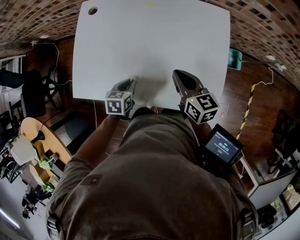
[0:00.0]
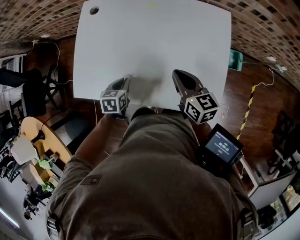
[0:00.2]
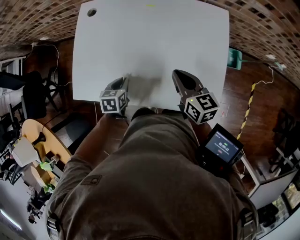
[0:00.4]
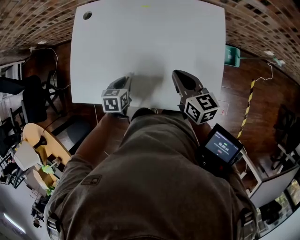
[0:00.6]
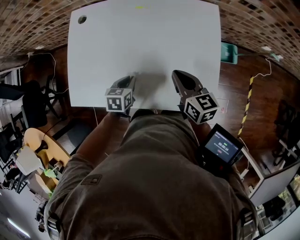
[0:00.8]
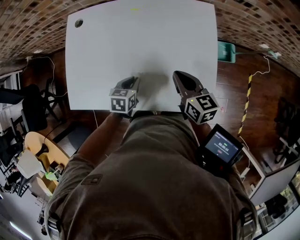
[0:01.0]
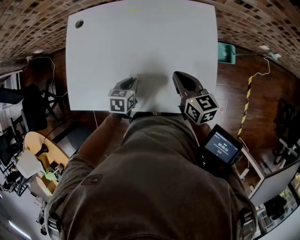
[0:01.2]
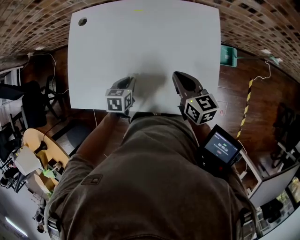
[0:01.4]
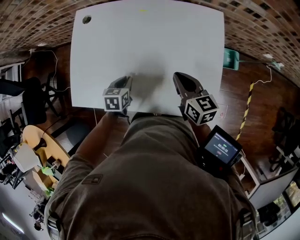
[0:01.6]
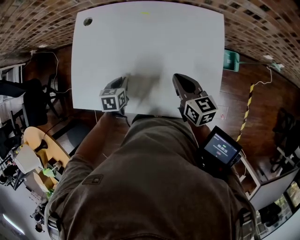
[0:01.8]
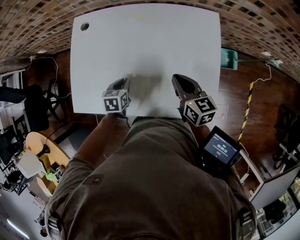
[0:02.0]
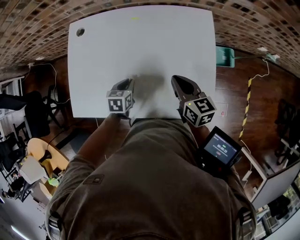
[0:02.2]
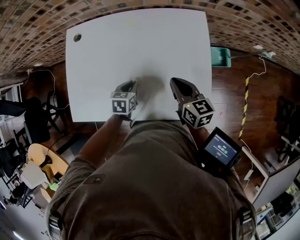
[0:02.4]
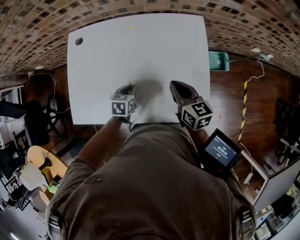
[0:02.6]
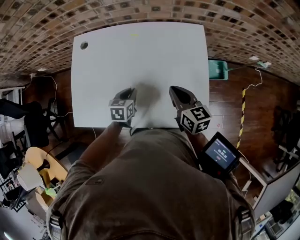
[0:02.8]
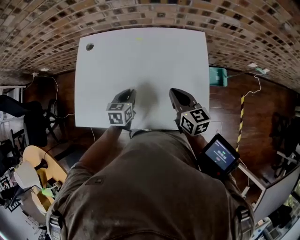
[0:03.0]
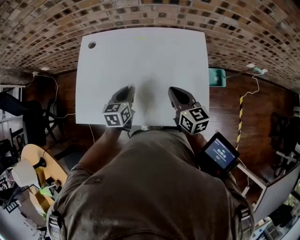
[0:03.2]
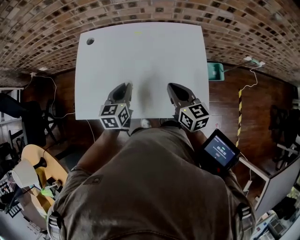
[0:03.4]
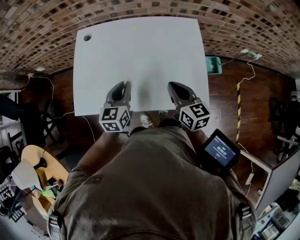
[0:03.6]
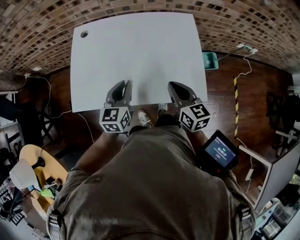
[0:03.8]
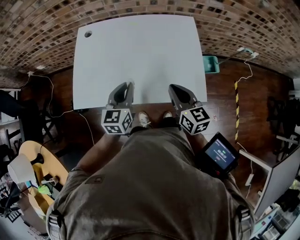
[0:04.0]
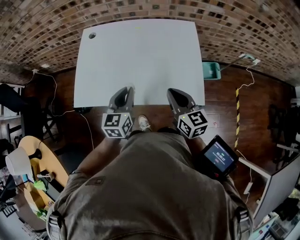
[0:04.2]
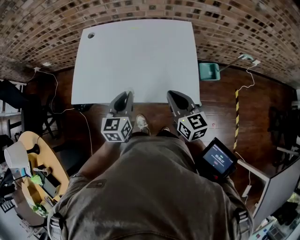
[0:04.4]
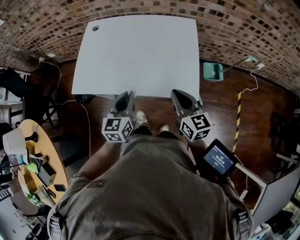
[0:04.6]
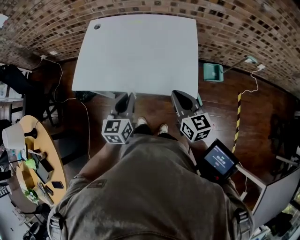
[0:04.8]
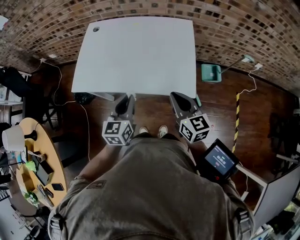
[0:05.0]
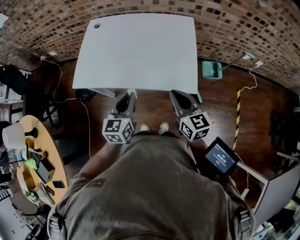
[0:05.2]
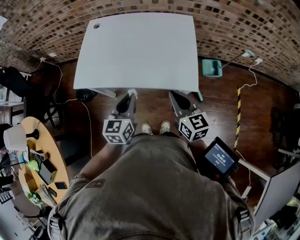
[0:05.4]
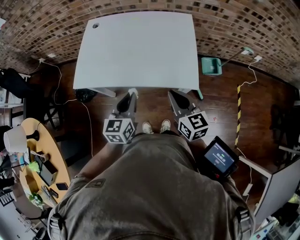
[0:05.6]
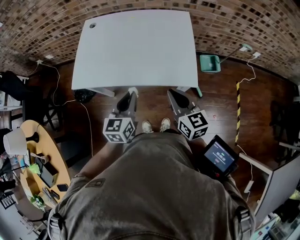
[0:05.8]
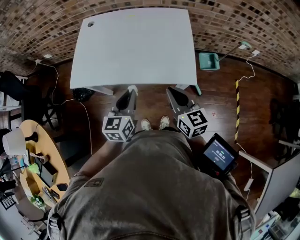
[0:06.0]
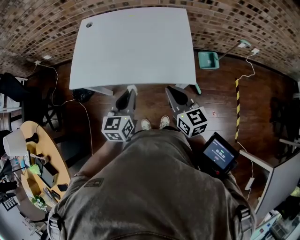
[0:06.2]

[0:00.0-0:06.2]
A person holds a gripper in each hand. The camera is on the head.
0:00.0 to 0:01.6: The left gripper moves forward, roughly 5 cm, and goes to the right and returns, about 5 cm each way.
0:01.6 to 0:03.2: The left gripper is displaced upward by approximately 10 cm, and turns by roughly 20 degrees; the right gripper goes roughly 5 cm upward.
0:03.2 to 0:04.6: The two grippers go roughly 20 cm backward.
0:04.6 to 0:06.2: The grippers both shift backward by approximately 5 cm.

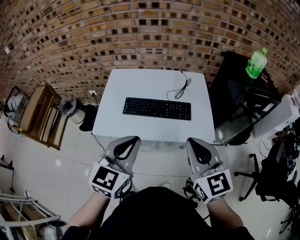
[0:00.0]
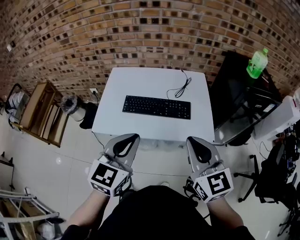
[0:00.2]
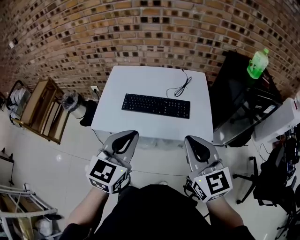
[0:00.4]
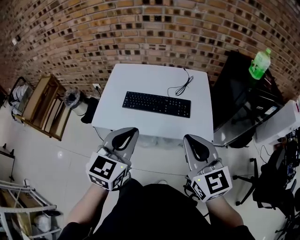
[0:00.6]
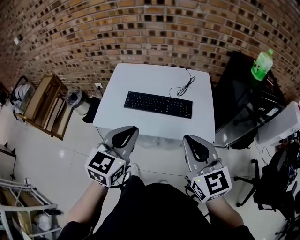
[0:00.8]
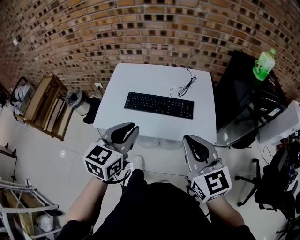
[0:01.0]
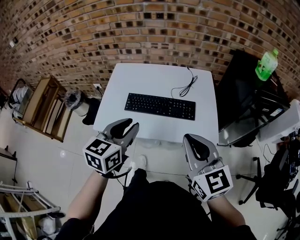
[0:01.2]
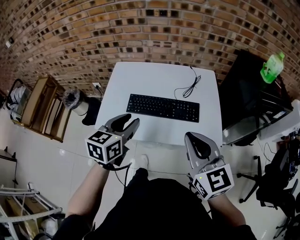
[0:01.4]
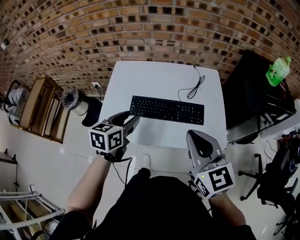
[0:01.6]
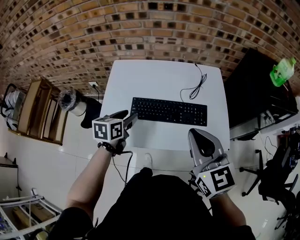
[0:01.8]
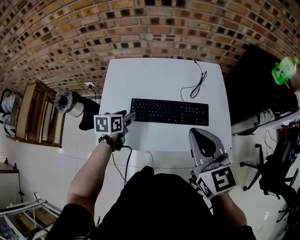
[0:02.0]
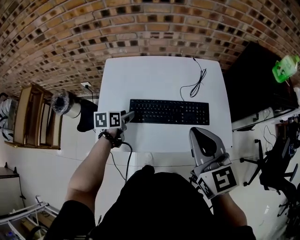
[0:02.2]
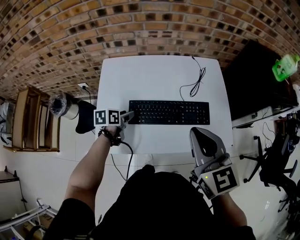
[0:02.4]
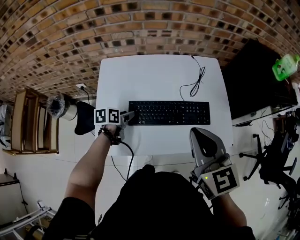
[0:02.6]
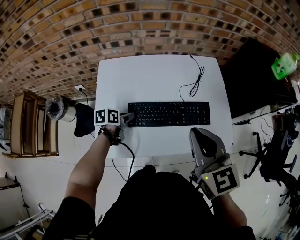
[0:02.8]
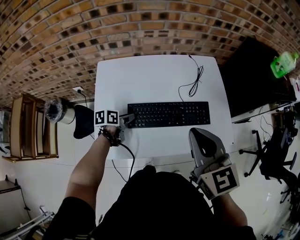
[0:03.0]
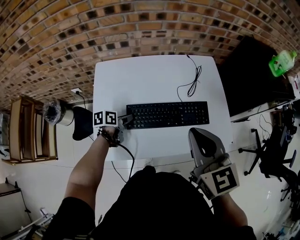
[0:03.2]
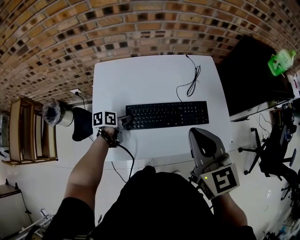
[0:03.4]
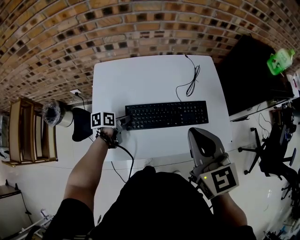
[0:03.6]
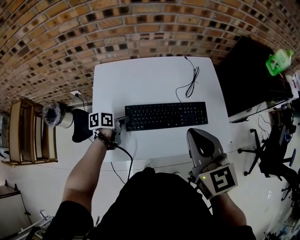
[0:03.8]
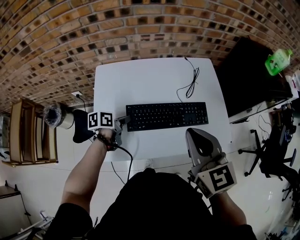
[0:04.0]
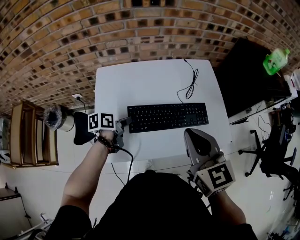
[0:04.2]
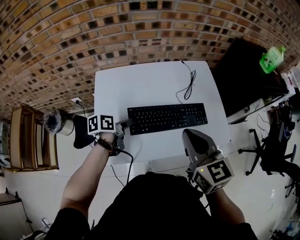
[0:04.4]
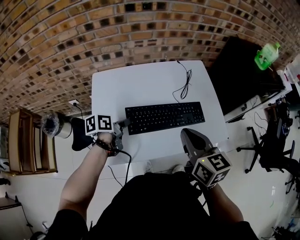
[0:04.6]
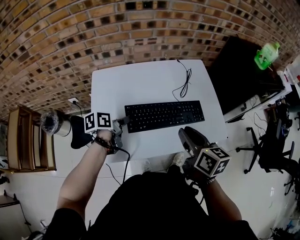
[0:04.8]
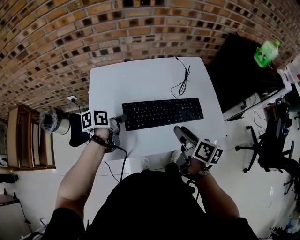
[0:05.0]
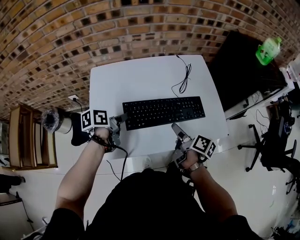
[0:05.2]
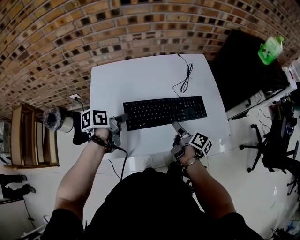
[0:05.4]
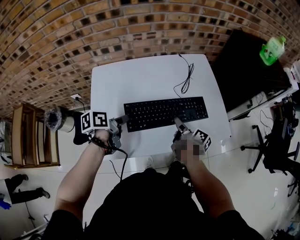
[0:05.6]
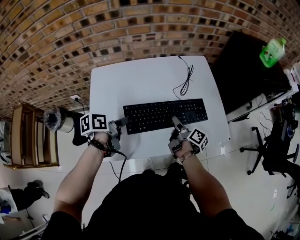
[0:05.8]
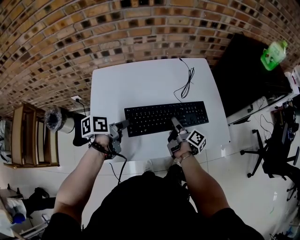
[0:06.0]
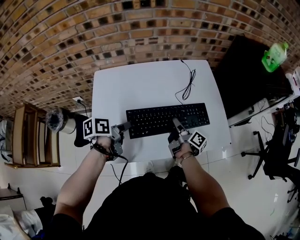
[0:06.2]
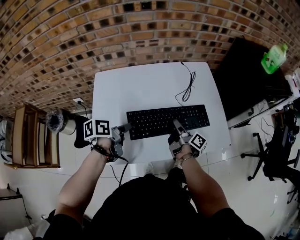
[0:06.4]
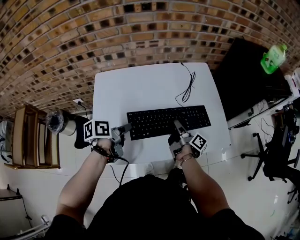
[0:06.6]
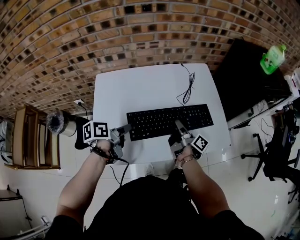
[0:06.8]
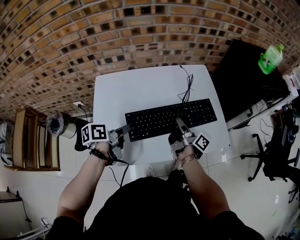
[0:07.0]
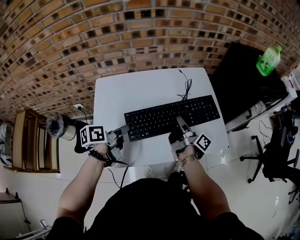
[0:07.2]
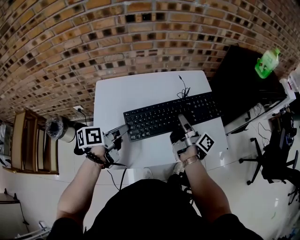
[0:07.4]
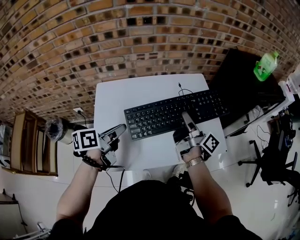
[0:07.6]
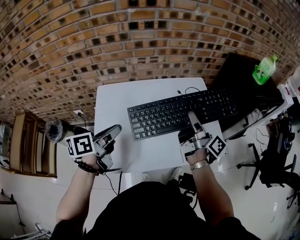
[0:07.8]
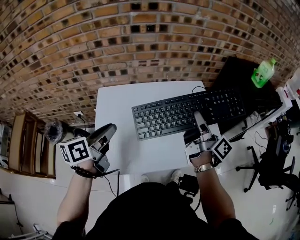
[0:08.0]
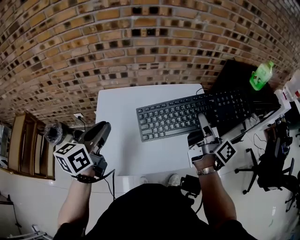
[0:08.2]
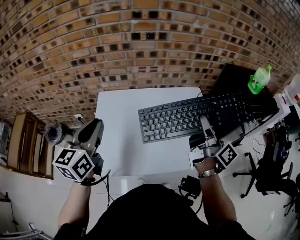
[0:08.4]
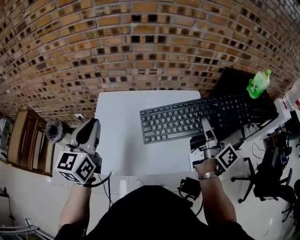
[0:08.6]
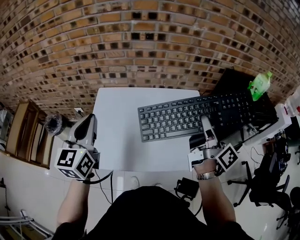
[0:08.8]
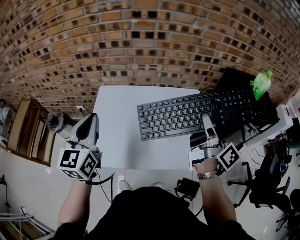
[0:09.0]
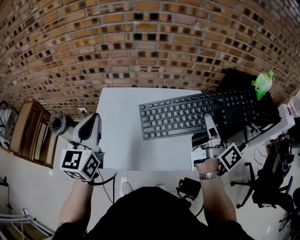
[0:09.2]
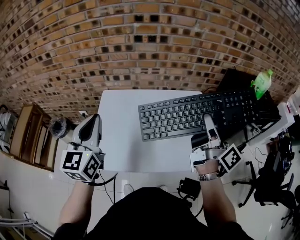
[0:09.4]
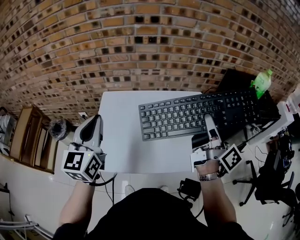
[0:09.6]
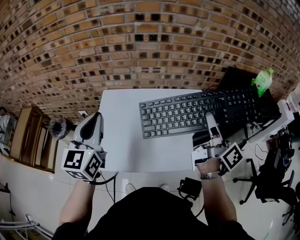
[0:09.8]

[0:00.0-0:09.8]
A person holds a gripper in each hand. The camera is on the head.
0:00.0 to 0:01.4: The left gripper goes approximately 15 cm forward and downward, swivels some 20 degrees, and opens. Meanwhile the right gripper heads forward, covering some 5 cm.
0:01.4 to 0:02.8: The left gripper shifts some 35 cm downward, forward and to the left, and rotates roughly 40 degrees; the right gripper travels forward and to the left by approximately 15 cm.
0:02.8 to 0:04.2: The left gripper moves upward, some 5 cm, and closes.
0:04.2 to 0:05.6: The right gripper shifts roughly 25 cm downward, rolls clockwise, seen from behind, by roughly 80 degrees, and opens its fingers.
0:05.6 to 0:07.0: The right gripper is displaced upward by roughly 5 cm, swivels approximately 20 degrees, and closes.
0:07.0 to 0:08.4: Both grippers move upward, some 25 cm. The left gripper turns by roughly 60 degrees; the right gripper rotates roughly 30 degrees.
0:08.4 to 0:09.8: The right gripper moves about 5 cm.

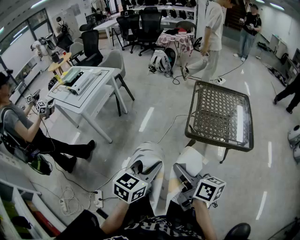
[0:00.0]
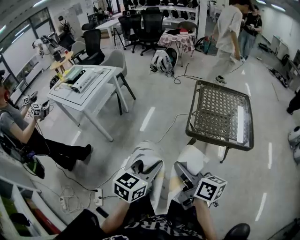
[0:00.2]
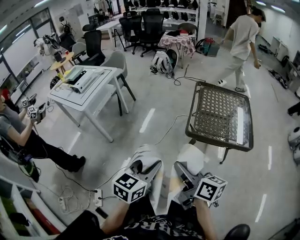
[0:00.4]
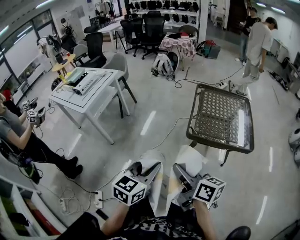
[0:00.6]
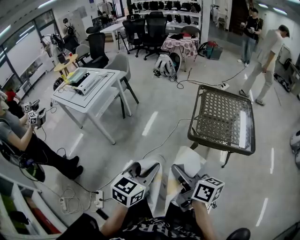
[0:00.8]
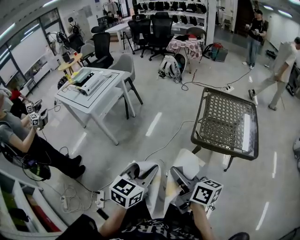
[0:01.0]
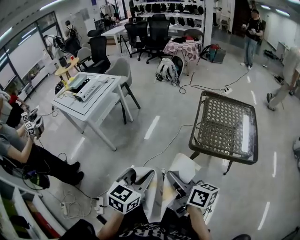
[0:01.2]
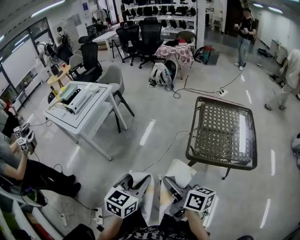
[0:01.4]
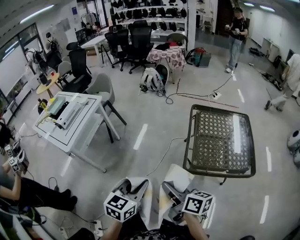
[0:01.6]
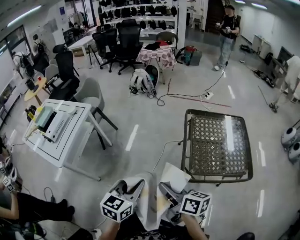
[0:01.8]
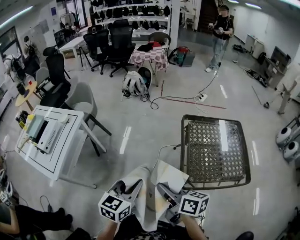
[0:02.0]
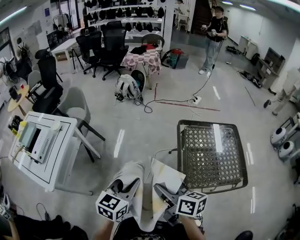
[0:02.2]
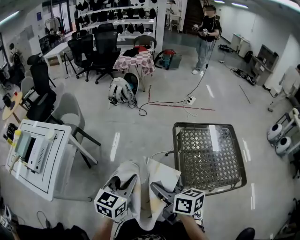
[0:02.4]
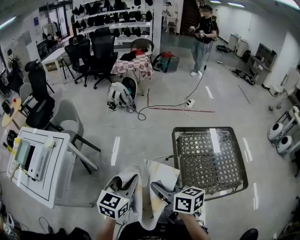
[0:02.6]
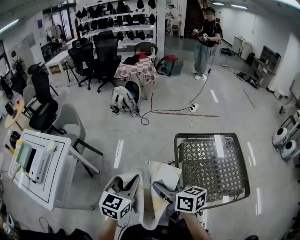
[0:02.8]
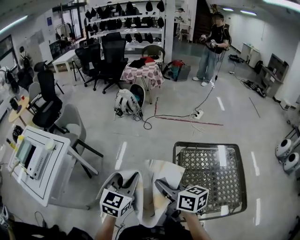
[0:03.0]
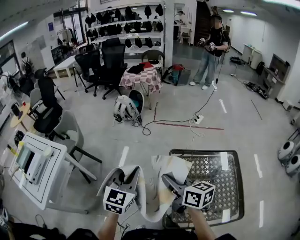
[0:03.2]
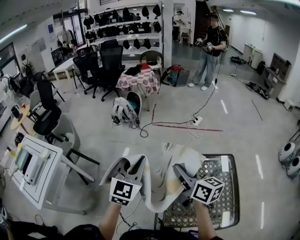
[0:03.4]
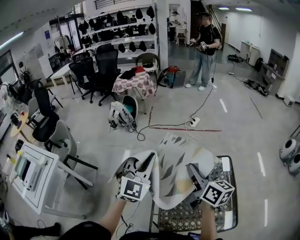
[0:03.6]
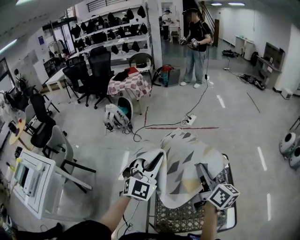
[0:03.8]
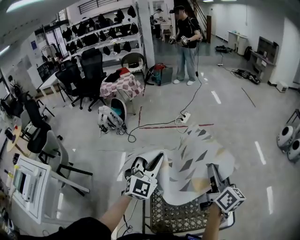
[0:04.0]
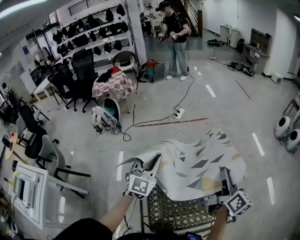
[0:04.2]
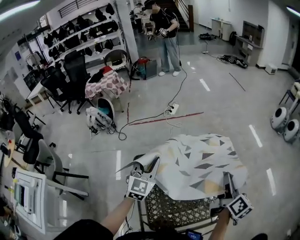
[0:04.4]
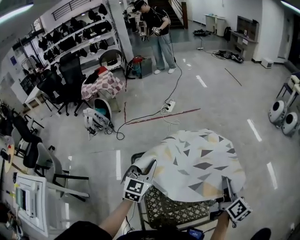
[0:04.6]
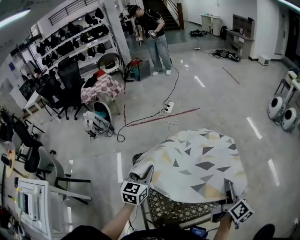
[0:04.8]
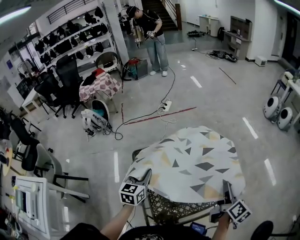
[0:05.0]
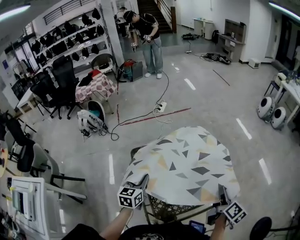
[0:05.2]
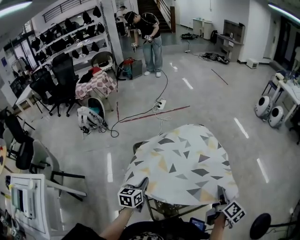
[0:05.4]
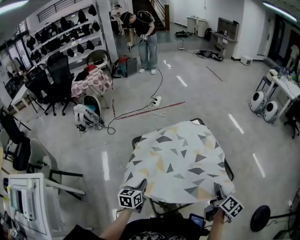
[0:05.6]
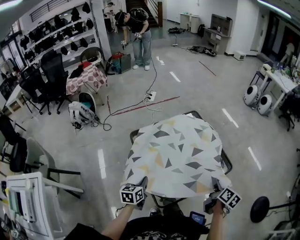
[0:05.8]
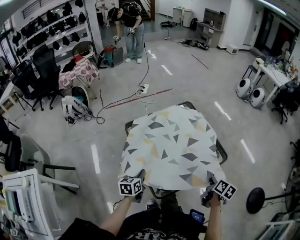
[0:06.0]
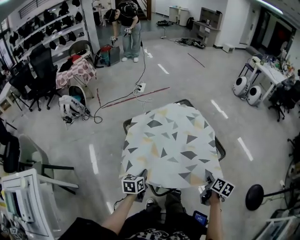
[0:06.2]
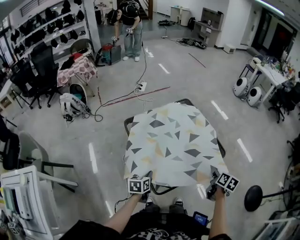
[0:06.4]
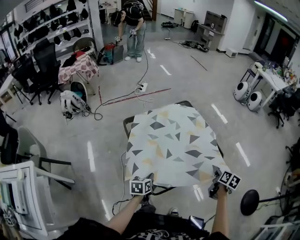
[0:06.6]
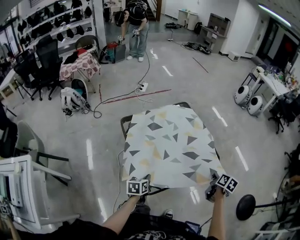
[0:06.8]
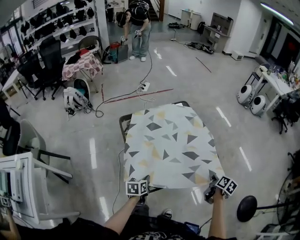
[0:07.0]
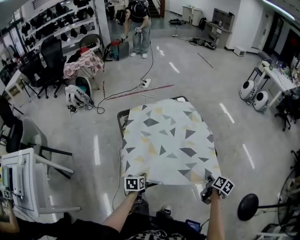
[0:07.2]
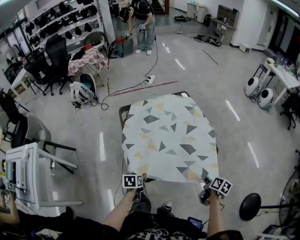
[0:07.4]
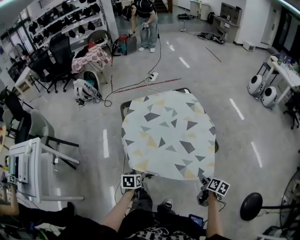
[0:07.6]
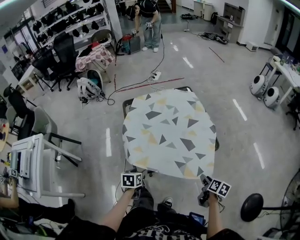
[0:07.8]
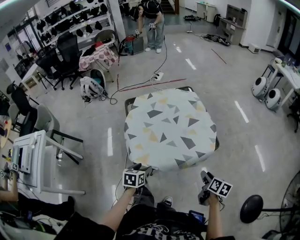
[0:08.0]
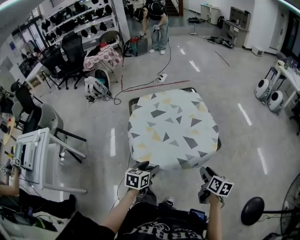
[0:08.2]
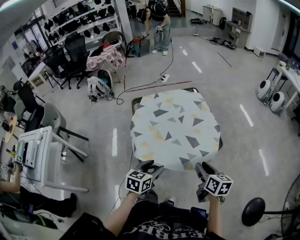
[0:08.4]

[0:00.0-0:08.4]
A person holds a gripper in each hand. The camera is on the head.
0:00.0 to 0:01.4: The grippers both shift forward by about 10 cm.
0:01.4 to 0:02.8: The pair of grippers is taken forward, about 40 cm.
0:02.8 to 0:04.2: The pair of grippers is taken roughly 60 cm. The left gripper changes its angle by roughly 30 degrees; the right gripper rotates roughly 60 degrees.
0:04.2 to 0:05.6: The two grippers go approximately 35 cm backward and downward. The right gripper turns by roughly 30 degrees. Meanwhile the left gripper rotates around the line of its fingers by about 40 degrees, counterclockwise from behind.
0:05.6 to 0:07.0: The right gripper travels to the right and downward by about 15 cm; the left gripper travels to the right, downward and backward by about 15 cm.
0:07.0 to 0:08.4: The right gripper shifts some 15 cm backward and upward, changes its angle by approximately 40 degrees, and opens its fingers; the left gripper heads to the right, upward and backward, covering roughly 20 cm, and opens its fingers.
